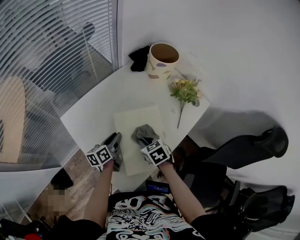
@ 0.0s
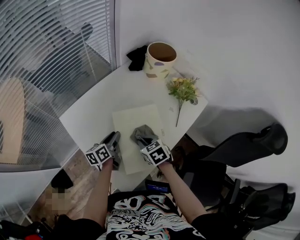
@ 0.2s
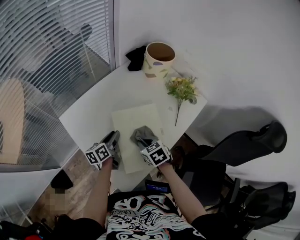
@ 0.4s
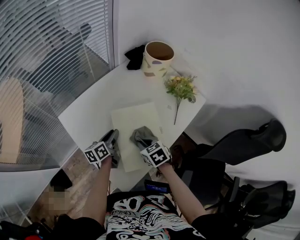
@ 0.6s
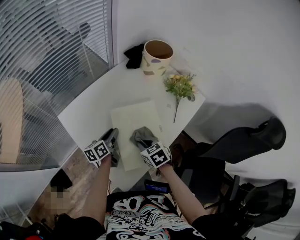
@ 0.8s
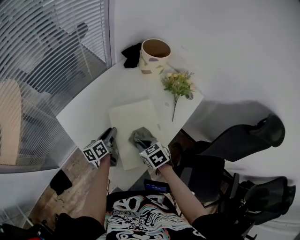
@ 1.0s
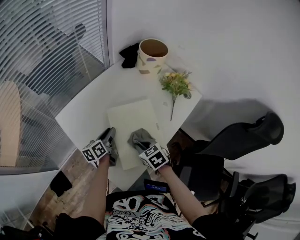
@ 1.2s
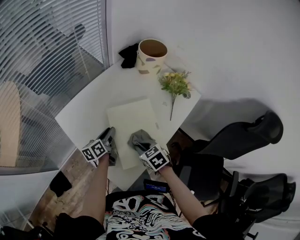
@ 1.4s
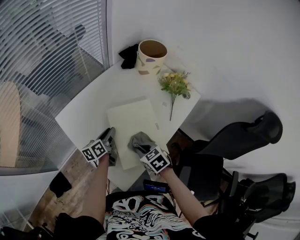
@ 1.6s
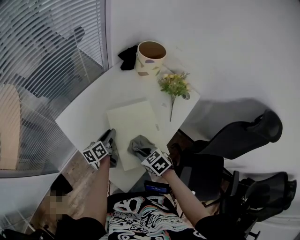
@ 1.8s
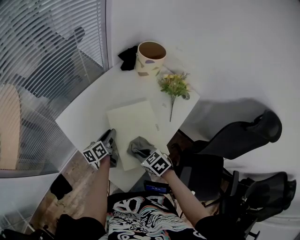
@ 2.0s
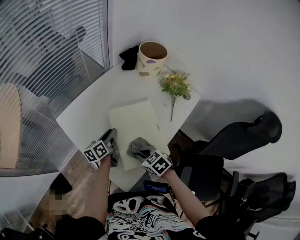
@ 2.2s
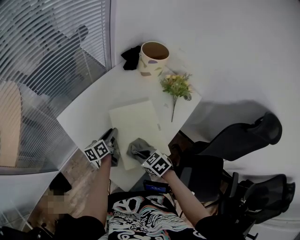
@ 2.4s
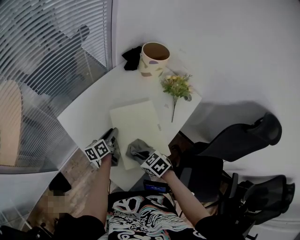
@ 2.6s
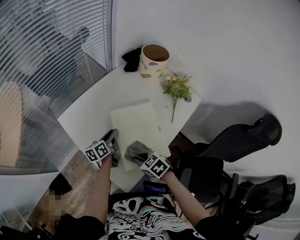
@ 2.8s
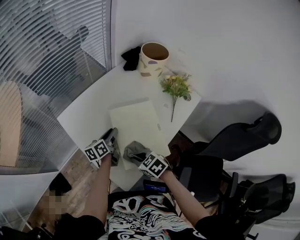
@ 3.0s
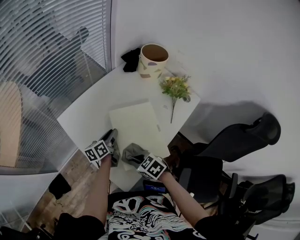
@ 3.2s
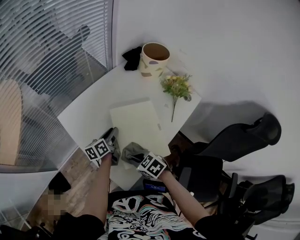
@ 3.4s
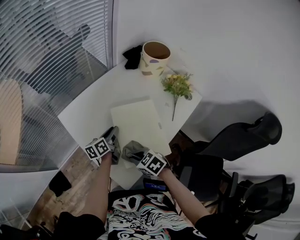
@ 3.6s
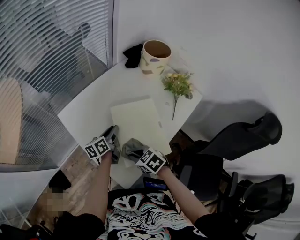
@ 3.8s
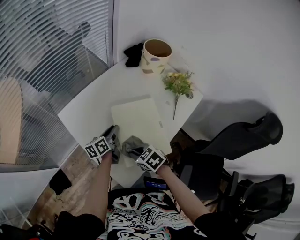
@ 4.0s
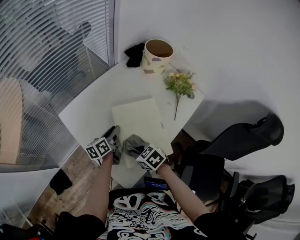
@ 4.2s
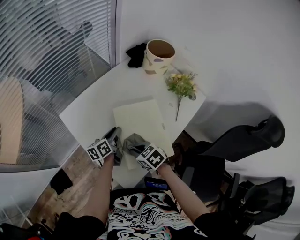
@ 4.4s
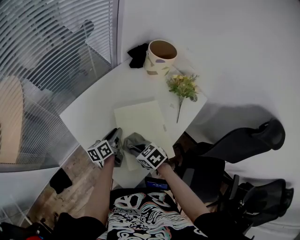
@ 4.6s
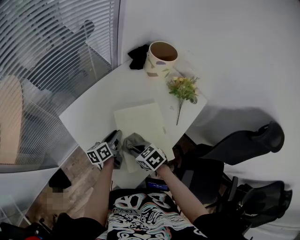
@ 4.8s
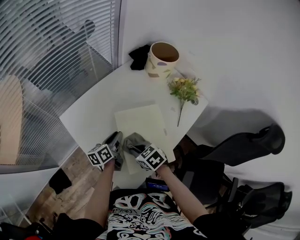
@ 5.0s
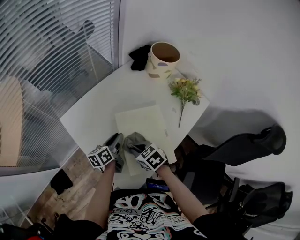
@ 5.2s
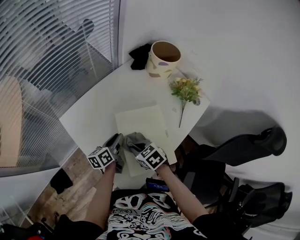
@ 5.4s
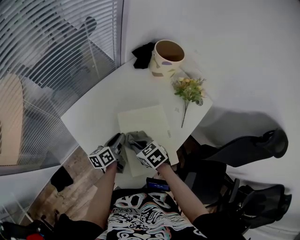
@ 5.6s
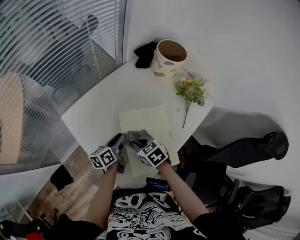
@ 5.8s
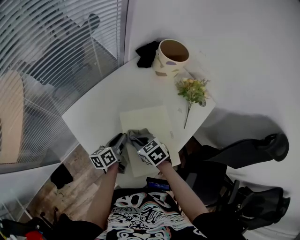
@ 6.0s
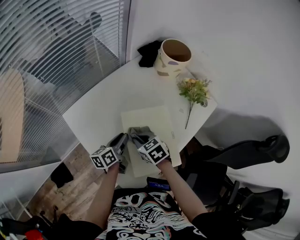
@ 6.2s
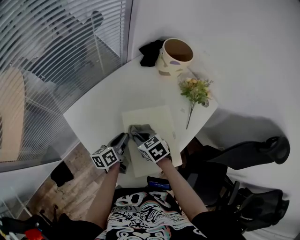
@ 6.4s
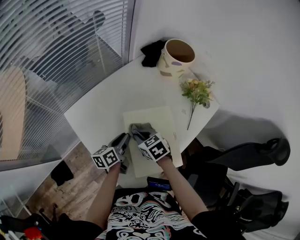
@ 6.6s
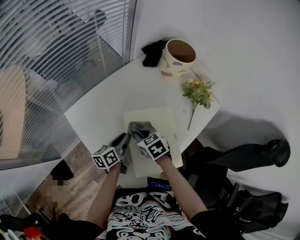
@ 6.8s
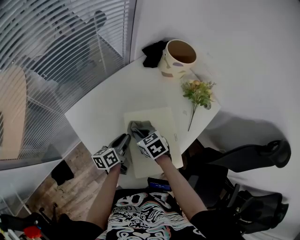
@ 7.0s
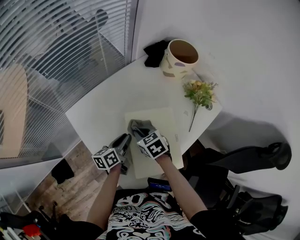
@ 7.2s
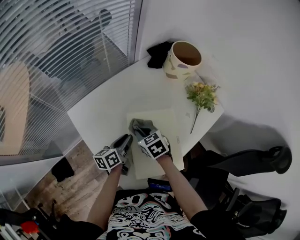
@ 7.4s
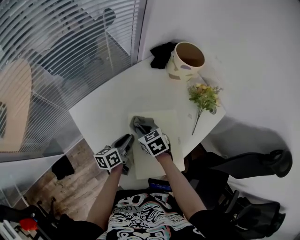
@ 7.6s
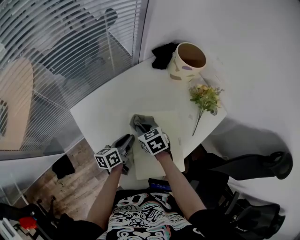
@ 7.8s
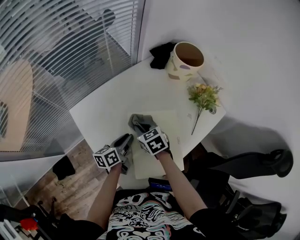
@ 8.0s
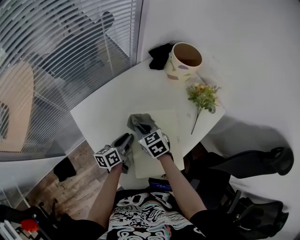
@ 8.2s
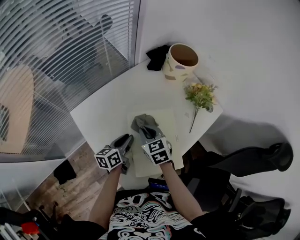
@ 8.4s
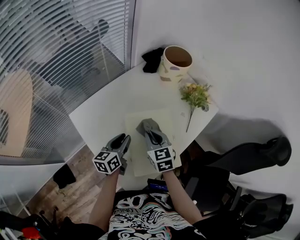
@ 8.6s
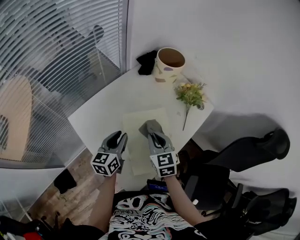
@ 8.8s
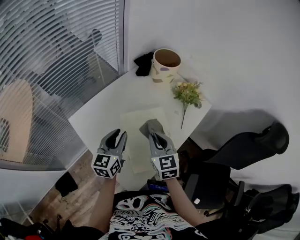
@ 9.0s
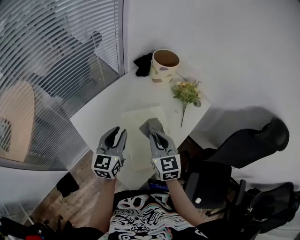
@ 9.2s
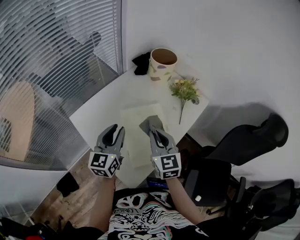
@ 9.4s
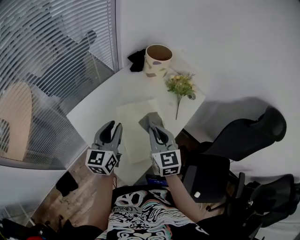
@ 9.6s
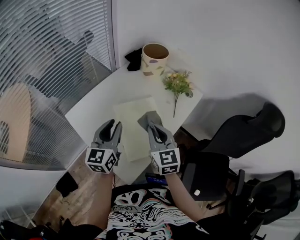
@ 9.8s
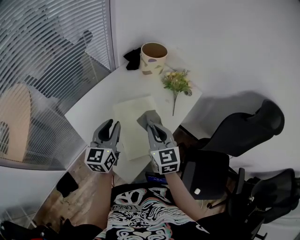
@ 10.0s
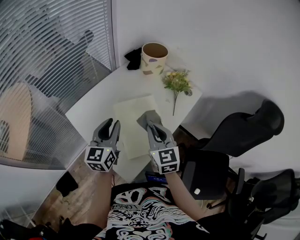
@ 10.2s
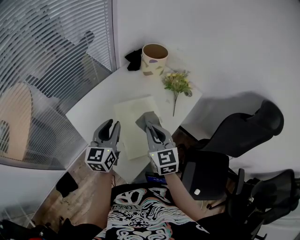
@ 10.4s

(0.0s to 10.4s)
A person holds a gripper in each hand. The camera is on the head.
0.0s - 1.4s: The right gripper heads backward, covering some 5 cm.
1.4s - 3.0s: The right gripper is displaced to the left by roughly 5 cm.
3.0s - 4.4s: The grippers make only small movements.
4.4s - 6.0s: The right gripper travels forward by approximately 10 cm.
6.0s - 7.4s: The right gripper shifts some 5 cm forward.
7.4s - 9.0s: The left gripper moves upward, some 15 cm, and rotates around the line of its fingers by some 40 degrees, clockwise from behind. Meanwhile the right gripper moves upward, to the right and backward, approximately 20 cm, and swivels approximately 40 degrees.
9.0s - 10.4s: The right gripper goes some 5 cm backward, while the left gripper shifts approximately 5 cm upward.

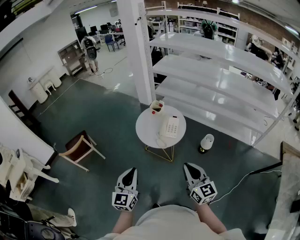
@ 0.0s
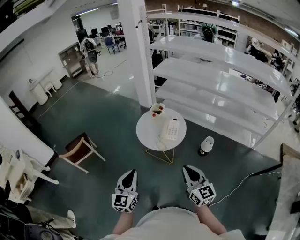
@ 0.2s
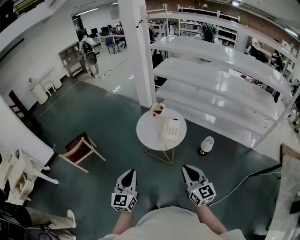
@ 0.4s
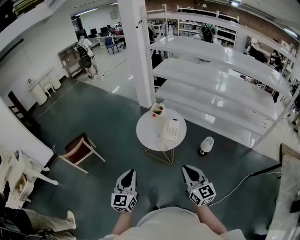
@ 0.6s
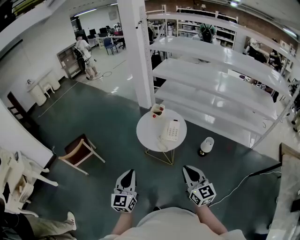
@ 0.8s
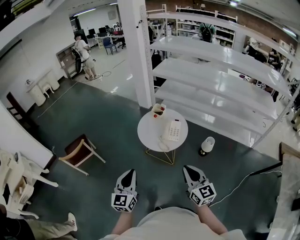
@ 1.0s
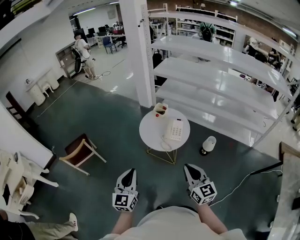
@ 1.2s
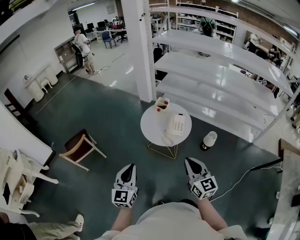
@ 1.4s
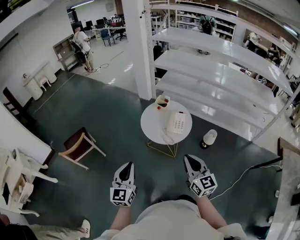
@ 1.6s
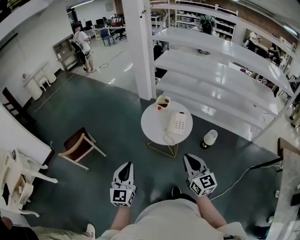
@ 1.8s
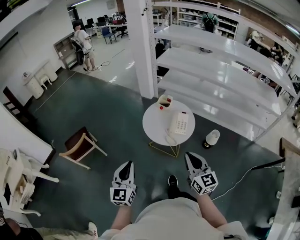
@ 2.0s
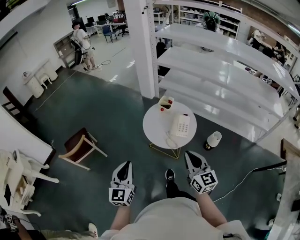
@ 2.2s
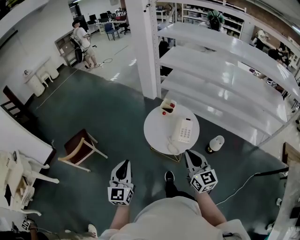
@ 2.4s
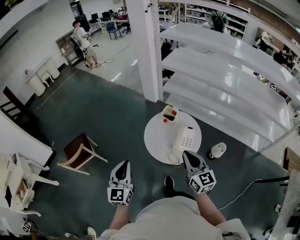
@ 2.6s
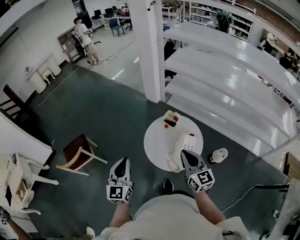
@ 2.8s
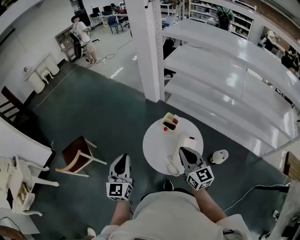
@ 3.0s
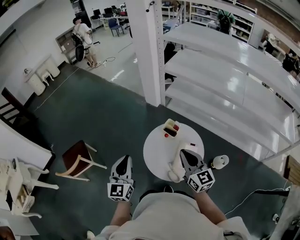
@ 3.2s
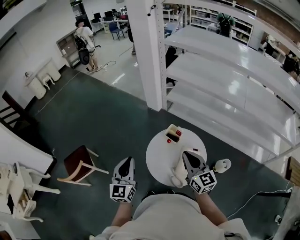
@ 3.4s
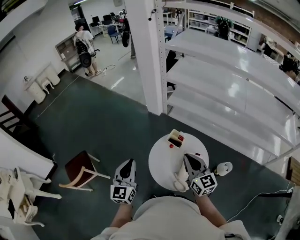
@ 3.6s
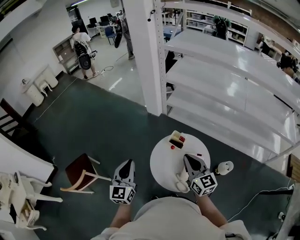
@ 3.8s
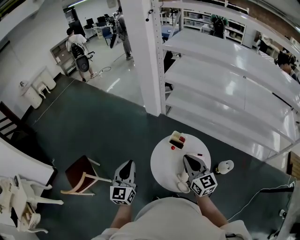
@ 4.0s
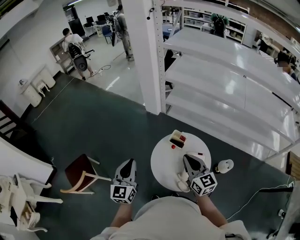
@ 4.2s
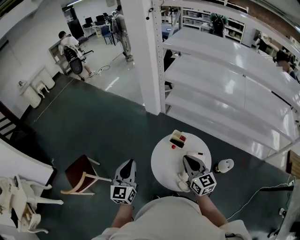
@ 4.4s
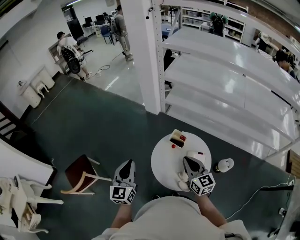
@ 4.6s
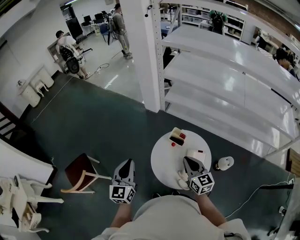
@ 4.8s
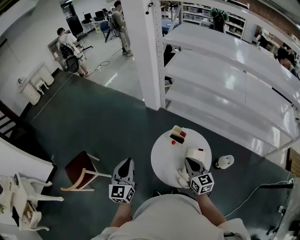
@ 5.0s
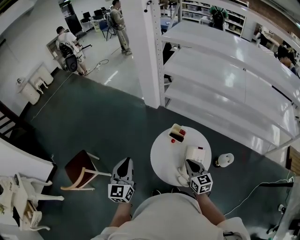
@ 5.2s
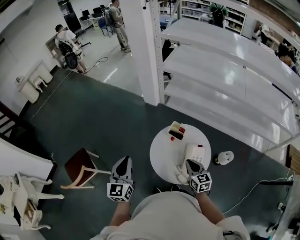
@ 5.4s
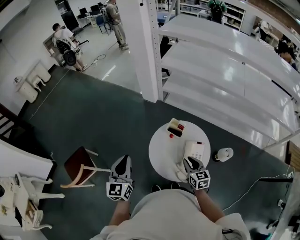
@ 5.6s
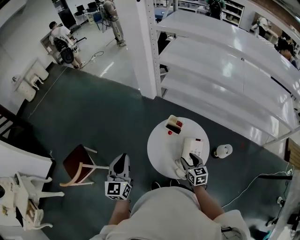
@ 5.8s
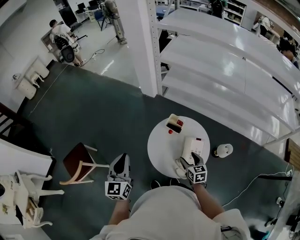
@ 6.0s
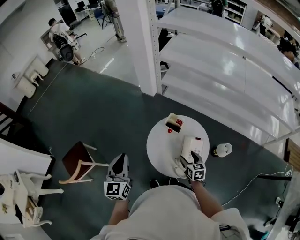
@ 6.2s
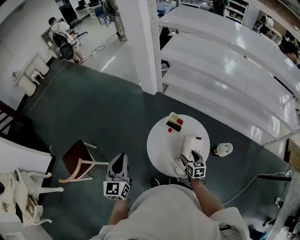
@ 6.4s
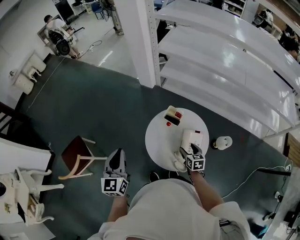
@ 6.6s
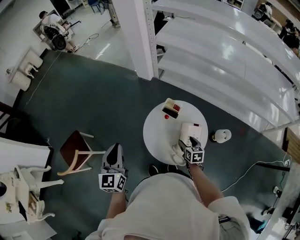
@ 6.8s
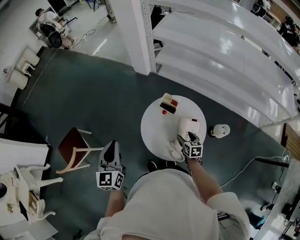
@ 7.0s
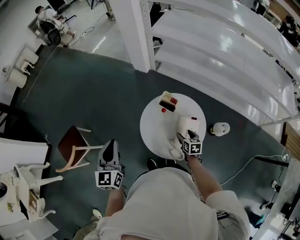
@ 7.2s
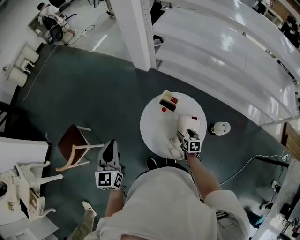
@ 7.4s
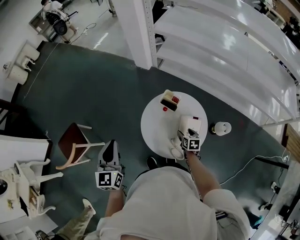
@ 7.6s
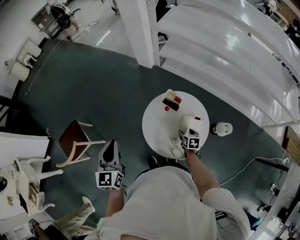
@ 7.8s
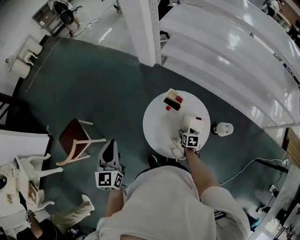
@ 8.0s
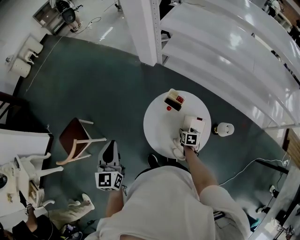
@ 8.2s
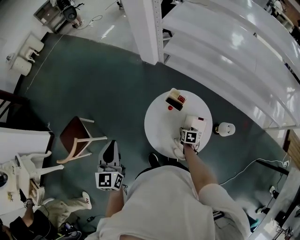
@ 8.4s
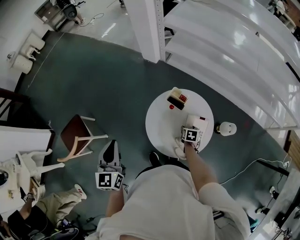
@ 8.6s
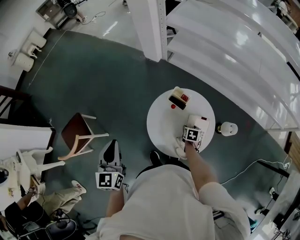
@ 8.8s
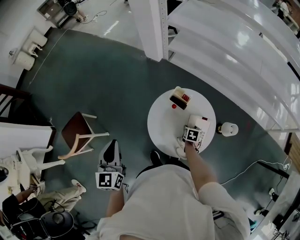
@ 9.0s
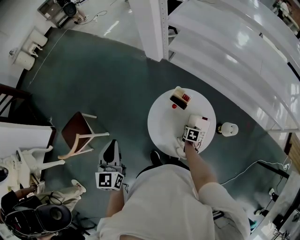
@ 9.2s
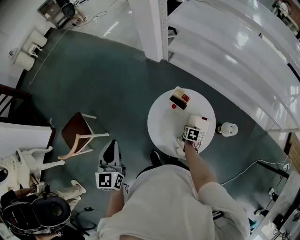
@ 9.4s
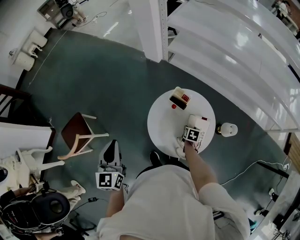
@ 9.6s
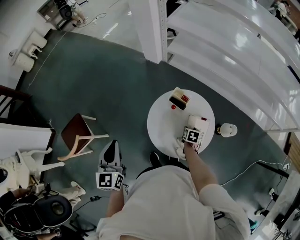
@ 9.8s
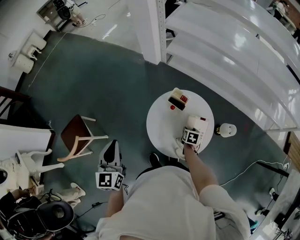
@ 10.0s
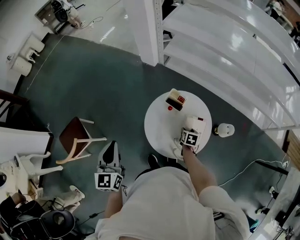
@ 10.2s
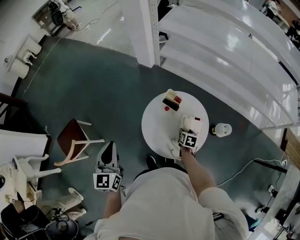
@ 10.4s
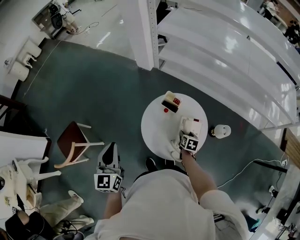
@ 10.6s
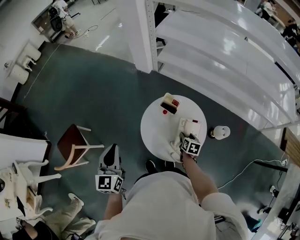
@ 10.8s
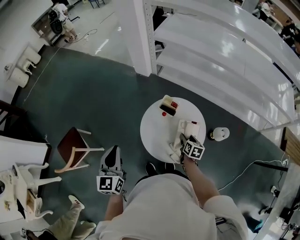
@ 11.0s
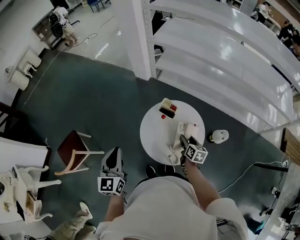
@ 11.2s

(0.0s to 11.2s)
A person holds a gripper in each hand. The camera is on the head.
0.0s - 1.6s: Both grippers travel together to the left, some 10 cm.
1.6s - 3.2s: The two grippers go about 35 cm forward.
3.2s - 4.8s: The left gripper travels forward by approximately 5 cm; the right gripper moves downward, approximately 5 cm.
4.8s - 6.4s: The right gripper moves downward, approximately 20 cm, rotates approximately 30 degrees, and opens up.
6.4s - 8.0s: The right gripper shifts some 10 cm downward.
8.0s - 9.6s: The grippers move only a little.
9.6s - 11.2s: The right gripper heads upward, covering roughly 15 cm, and turns by about 30 degrees.

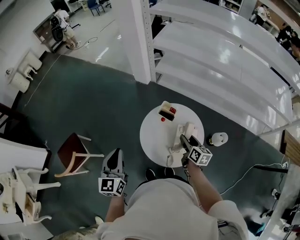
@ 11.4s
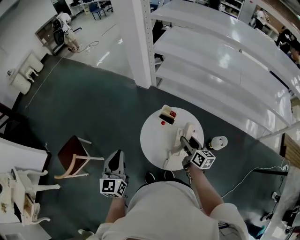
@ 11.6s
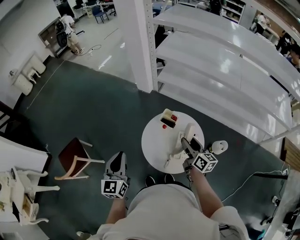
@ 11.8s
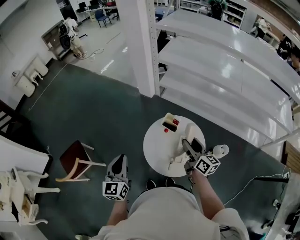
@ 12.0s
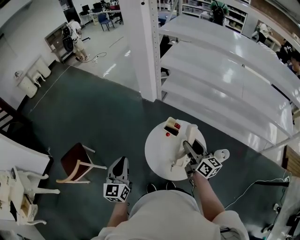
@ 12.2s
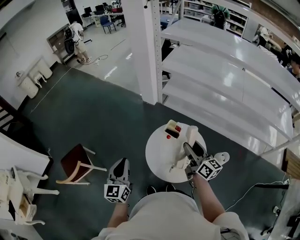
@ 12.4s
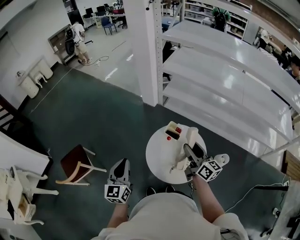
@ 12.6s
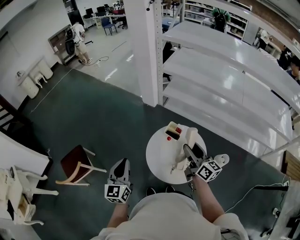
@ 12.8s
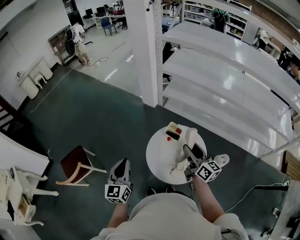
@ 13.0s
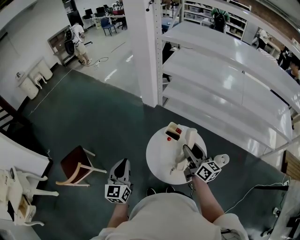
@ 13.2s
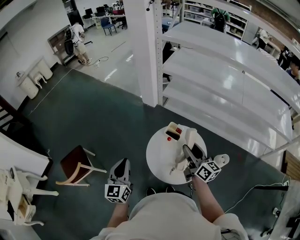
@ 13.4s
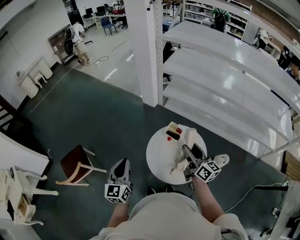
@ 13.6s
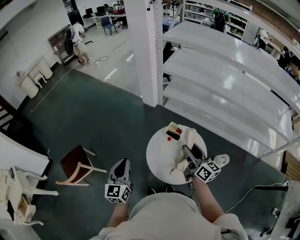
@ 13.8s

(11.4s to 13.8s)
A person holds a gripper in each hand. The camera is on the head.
11.4s - 12.6s: The right gripper shifts about 20 cm upward, and swivels some 30 degrees.
12.6s - 13.8s: Both grippers stay put.
